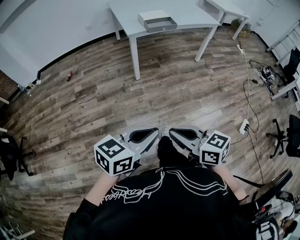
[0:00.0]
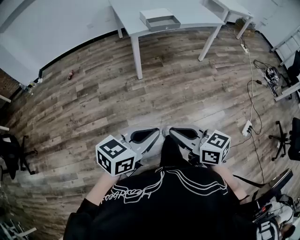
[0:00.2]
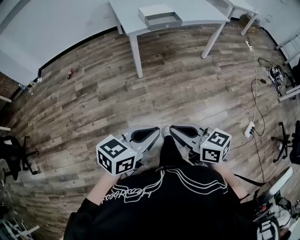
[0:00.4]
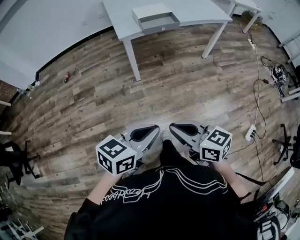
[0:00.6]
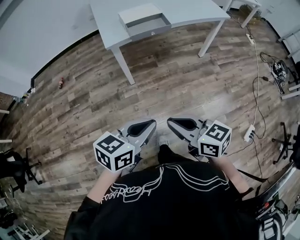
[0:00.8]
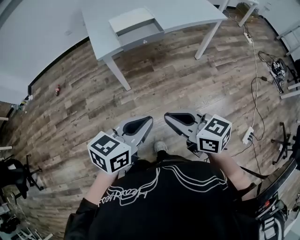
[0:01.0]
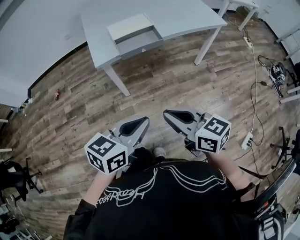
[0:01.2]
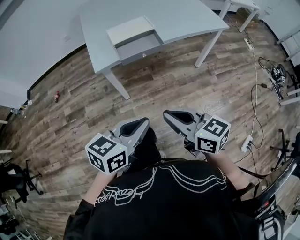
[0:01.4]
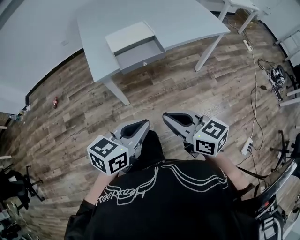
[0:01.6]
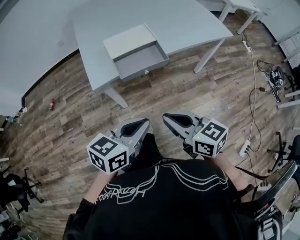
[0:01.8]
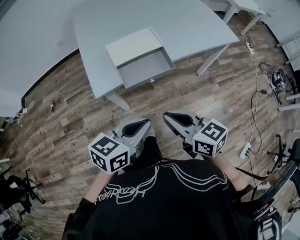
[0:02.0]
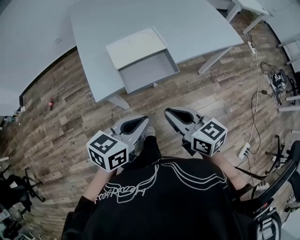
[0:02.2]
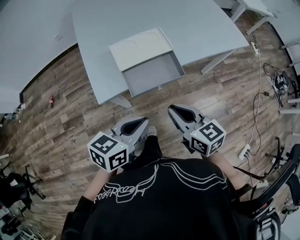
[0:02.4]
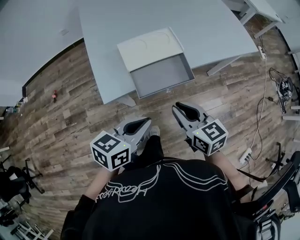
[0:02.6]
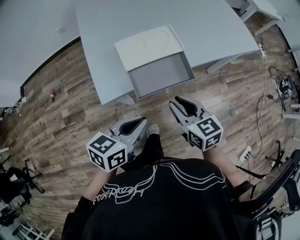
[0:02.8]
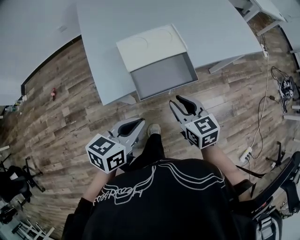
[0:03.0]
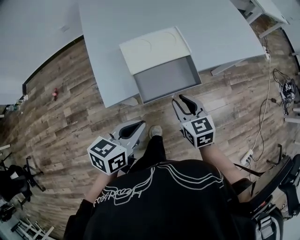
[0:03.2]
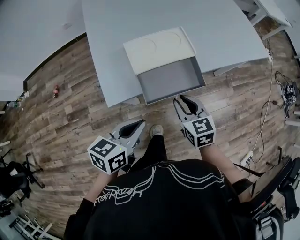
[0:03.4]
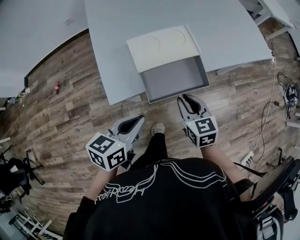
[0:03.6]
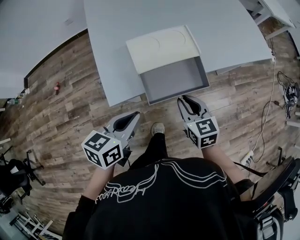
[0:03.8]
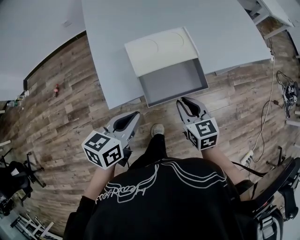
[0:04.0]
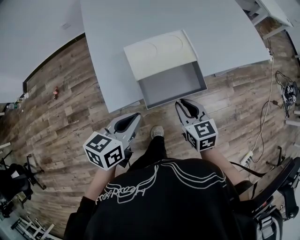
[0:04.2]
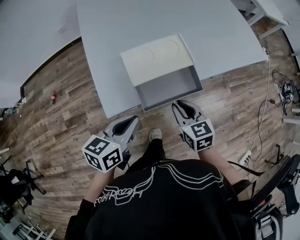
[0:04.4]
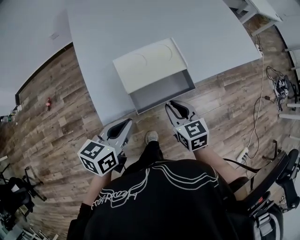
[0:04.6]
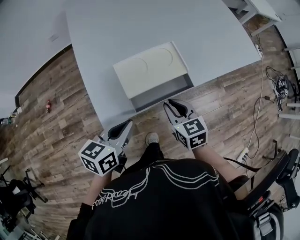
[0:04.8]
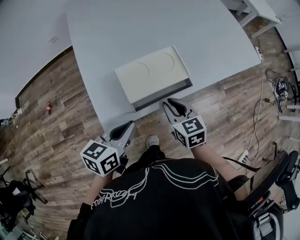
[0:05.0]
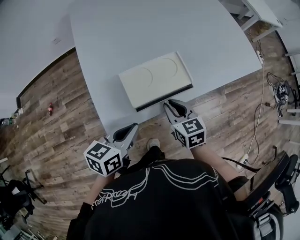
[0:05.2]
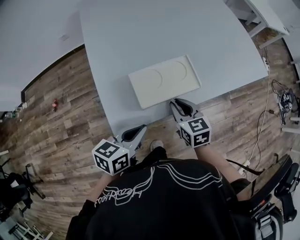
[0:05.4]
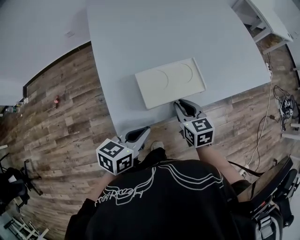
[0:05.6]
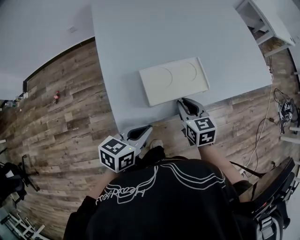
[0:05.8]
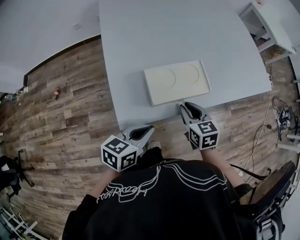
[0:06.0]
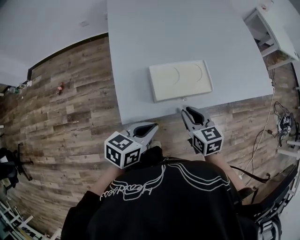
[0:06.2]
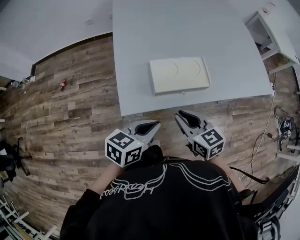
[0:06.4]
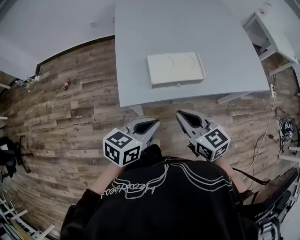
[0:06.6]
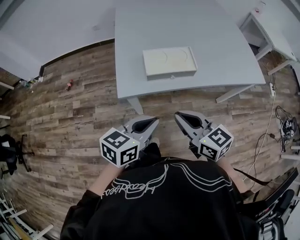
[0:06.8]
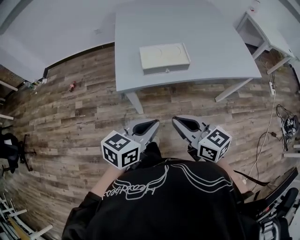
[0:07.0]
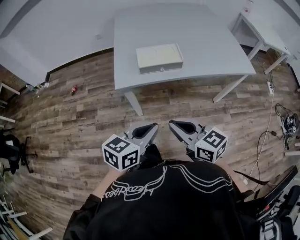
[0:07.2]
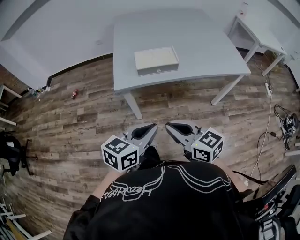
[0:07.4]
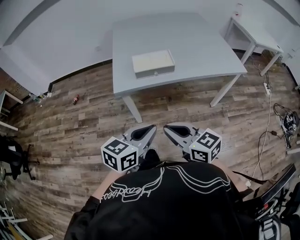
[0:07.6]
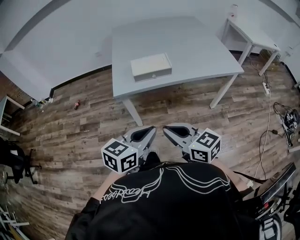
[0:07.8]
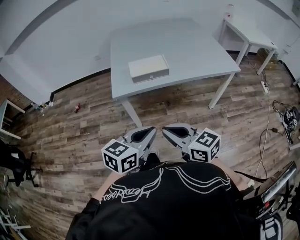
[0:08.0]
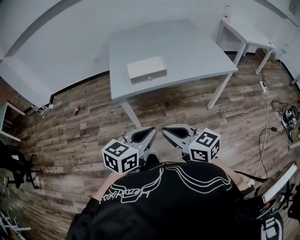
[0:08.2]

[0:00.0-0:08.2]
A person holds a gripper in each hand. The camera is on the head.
0:00.0 to 0:01.6: The pair of grippers is taken forward, approximately 50 cm.
0:01.6 to 0:03.2: The left gripper goes approximately 25 cm forward, to the left and downward. Meanwhile the right gripper is displaced forward and downward by roughly 30 cm, changes its angle by approximately 30 degrees, and opens its fingers.
0:03.2 to 0:05.0: Both grippers move forward, about 10 cm.
0:05.0 to 0:06.6: The left gripper travels backward and to the right by roughly 10 cm; the right gripper goes roughly 15 cm upward and backward, and rotates some 30 degrees.
0:06.6 to 0:08.2: The right gripper travels backward by about 30 cm. The left gripper travels backward, to the right and upward by roughly 30 cm.

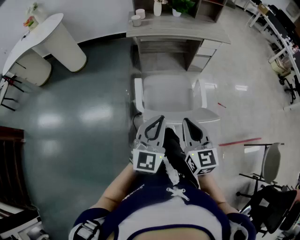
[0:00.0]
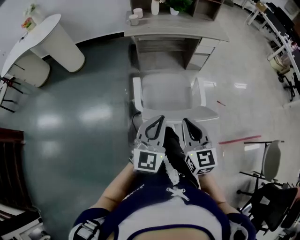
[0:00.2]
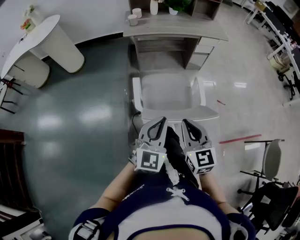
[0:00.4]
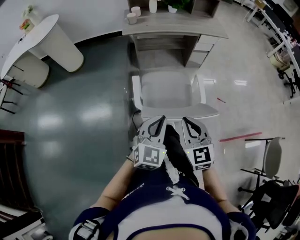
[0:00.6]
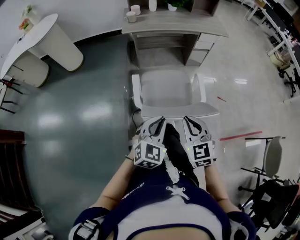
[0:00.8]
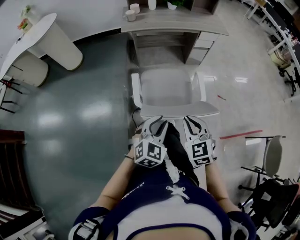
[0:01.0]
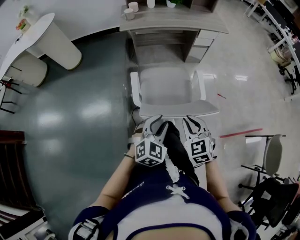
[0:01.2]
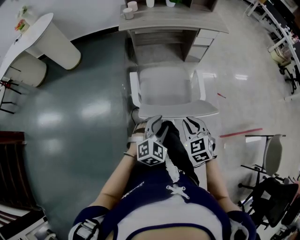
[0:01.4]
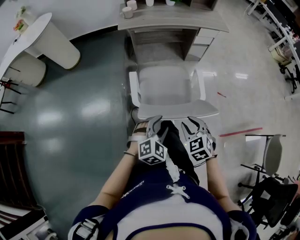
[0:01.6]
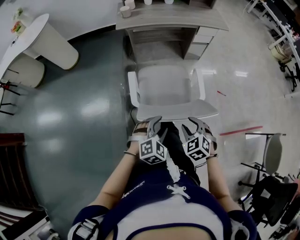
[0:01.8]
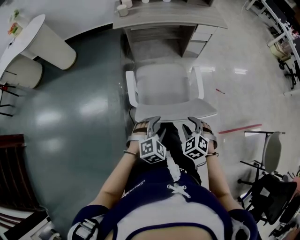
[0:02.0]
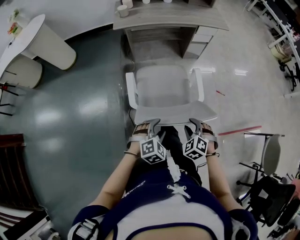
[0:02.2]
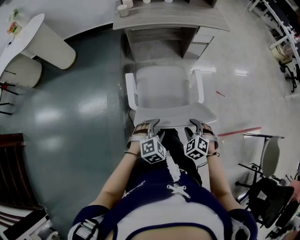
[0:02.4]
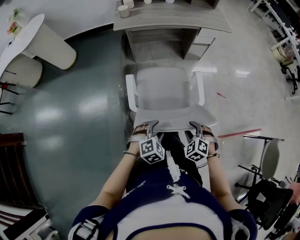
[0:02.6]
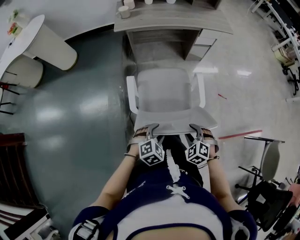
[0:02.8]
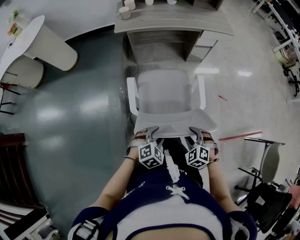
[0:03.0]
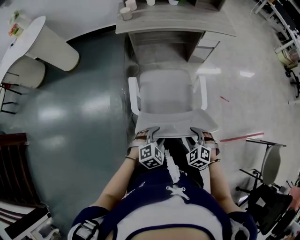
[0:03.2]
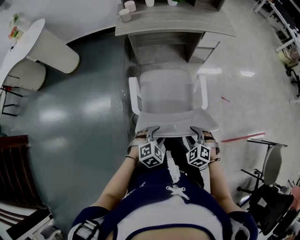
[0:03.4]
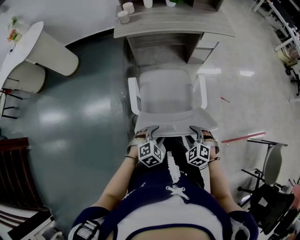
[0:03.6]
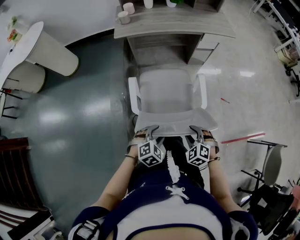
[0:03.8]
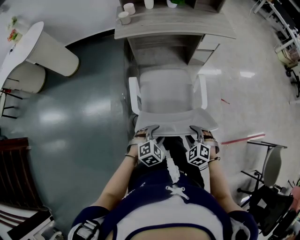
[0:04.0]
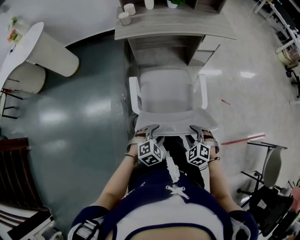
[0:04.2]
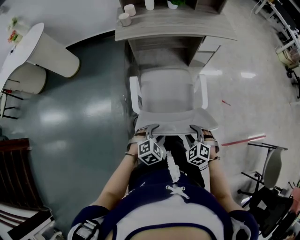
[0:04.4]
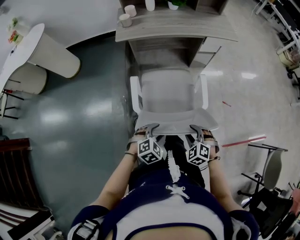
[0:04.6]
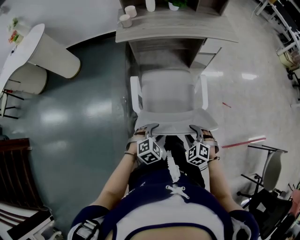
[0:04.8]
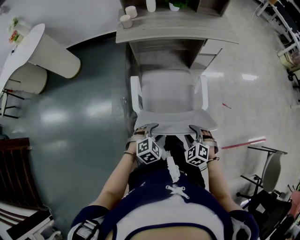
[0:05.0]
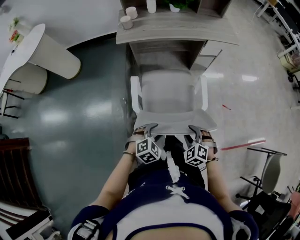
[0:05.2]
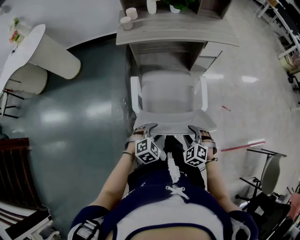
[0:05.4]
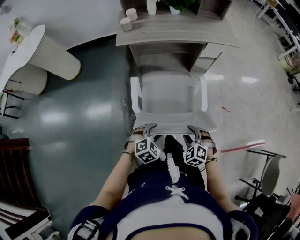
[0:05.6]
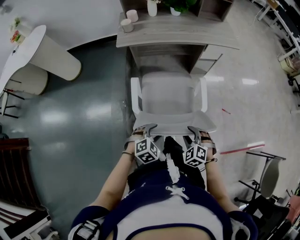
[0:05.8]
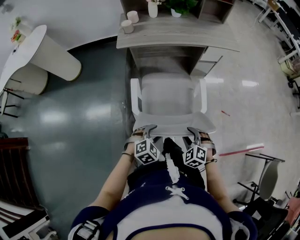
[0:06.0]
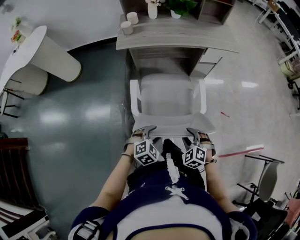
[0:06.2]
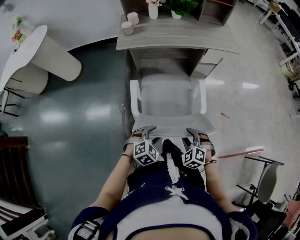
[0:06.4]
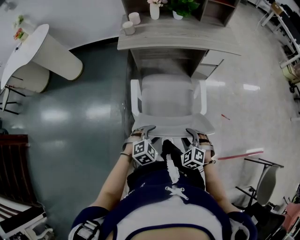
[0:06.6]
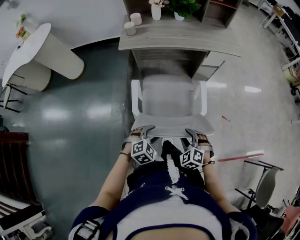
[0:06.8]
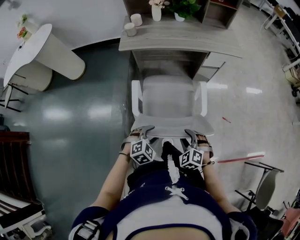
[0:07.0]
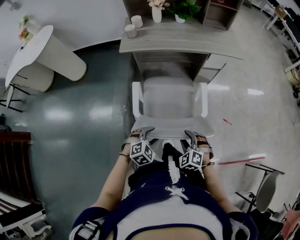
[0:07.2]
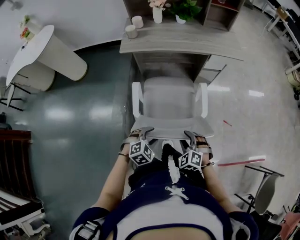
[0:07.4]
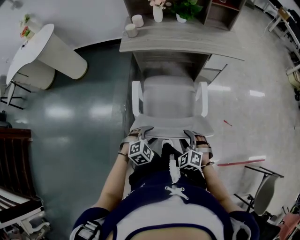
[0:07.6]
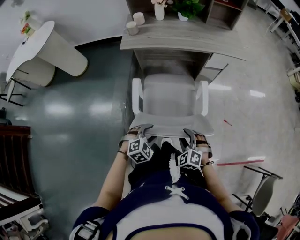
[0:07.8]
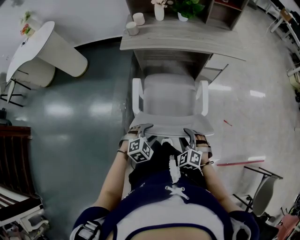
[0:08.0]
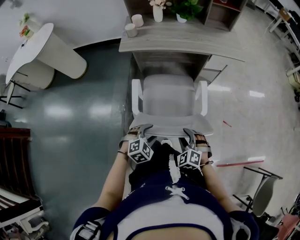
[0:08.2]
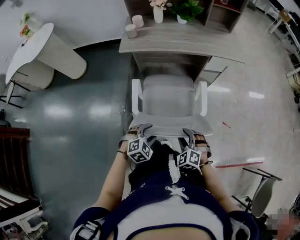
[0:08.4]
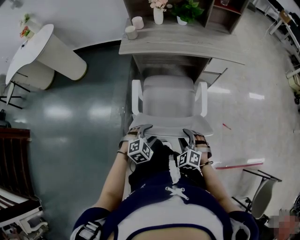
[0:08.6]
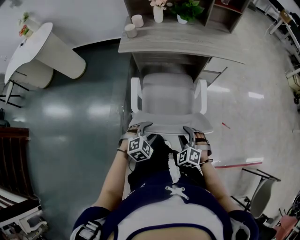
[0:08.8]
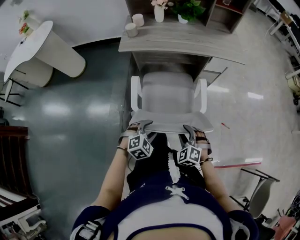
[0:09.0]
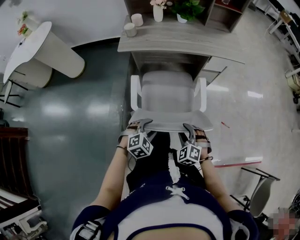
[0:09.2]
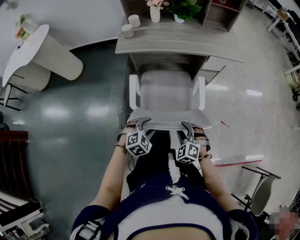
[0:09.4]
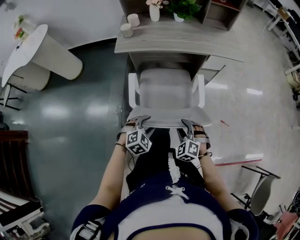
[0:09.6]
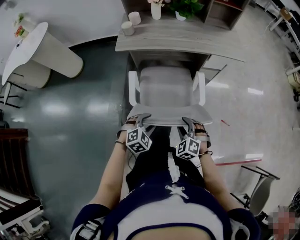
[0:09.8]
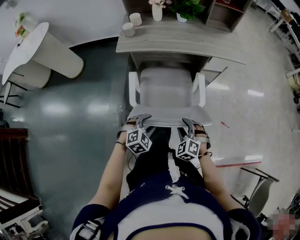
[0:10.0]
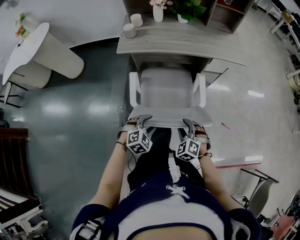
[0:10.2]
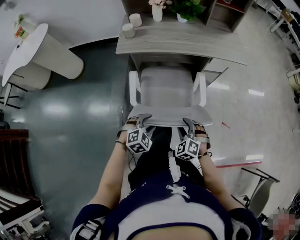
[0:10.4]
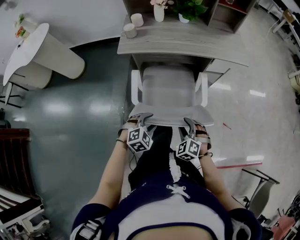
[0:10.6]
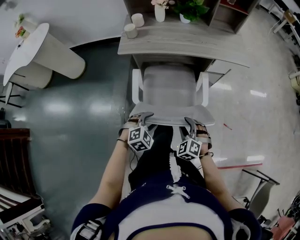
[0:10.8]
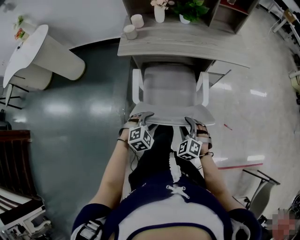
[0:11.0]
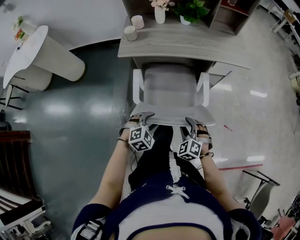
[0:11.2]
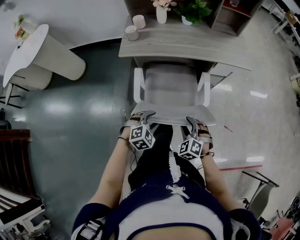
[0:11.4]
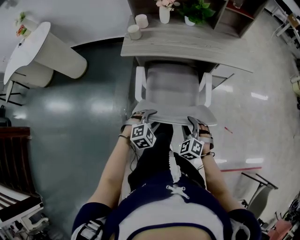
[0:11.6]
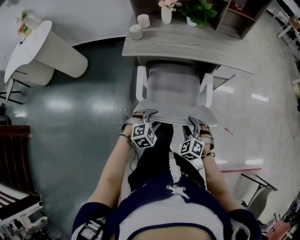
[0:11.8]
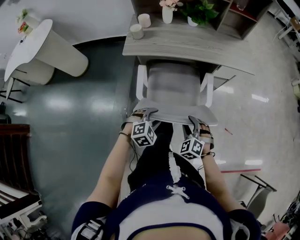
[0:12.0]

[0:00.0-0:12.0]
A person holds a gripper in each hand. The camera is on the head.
0:00.0 to 0:01.6: The two grippers go about 15 cm downward. The right gripper points its fingers approximately 30 degrees further downward; the left gripper angles its fingers downward, by about 40 degrees, and opens.
0:01.6 to 0:03.0: Both grippers travel together downward, roughly 10 cm. The right gripper changes its angle by about 20 degrees.
0:03.0 to 0:04.4: Both grippers travel together forward, some 5 cm.
0:04.4 to 0:06.0: Both grippers travel together forward, some 5 cm.
0:06.0 to 0:07.6: The grippers make only small movements.
0:07.6 to 0:09.0: Both grippers travel together forward, some 5 cm.
0:09.0 to 0:10.4: The grippers both shift forward by approximately 5 cm.
0:10.4 to 0:12.0: The two grippers go some 5 cm forward.

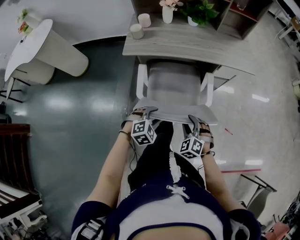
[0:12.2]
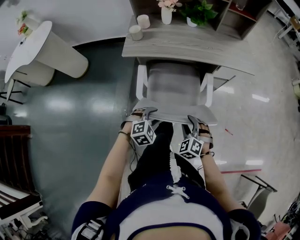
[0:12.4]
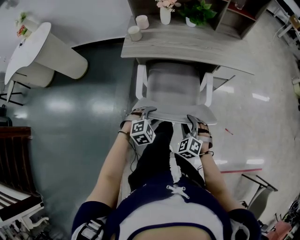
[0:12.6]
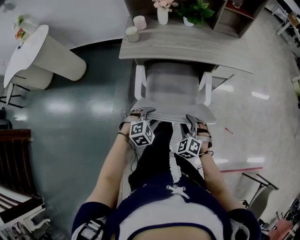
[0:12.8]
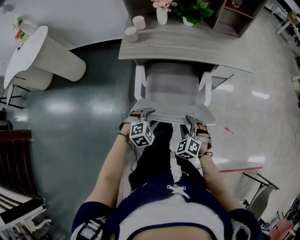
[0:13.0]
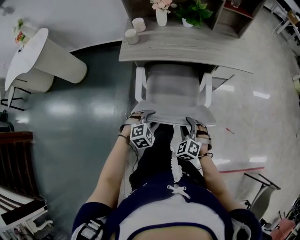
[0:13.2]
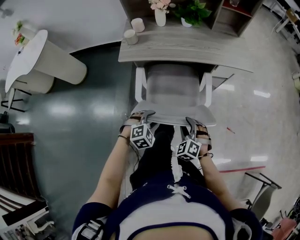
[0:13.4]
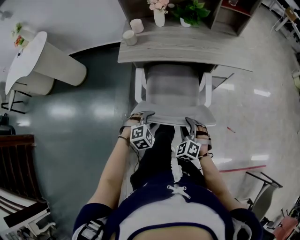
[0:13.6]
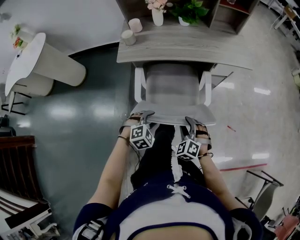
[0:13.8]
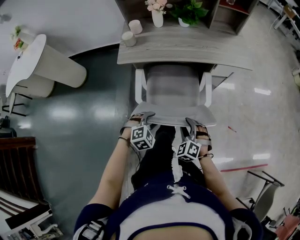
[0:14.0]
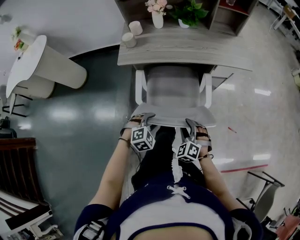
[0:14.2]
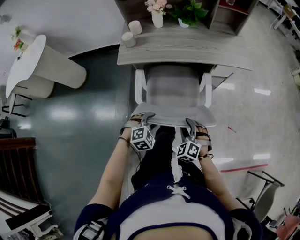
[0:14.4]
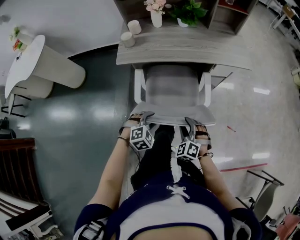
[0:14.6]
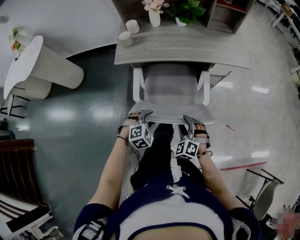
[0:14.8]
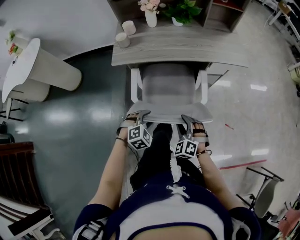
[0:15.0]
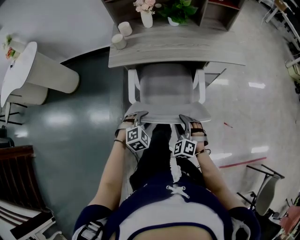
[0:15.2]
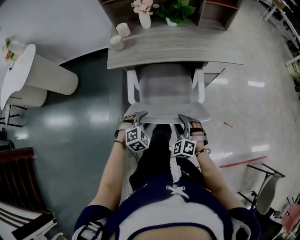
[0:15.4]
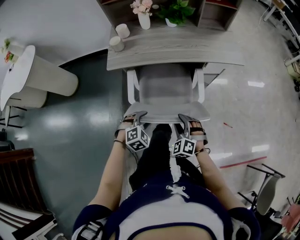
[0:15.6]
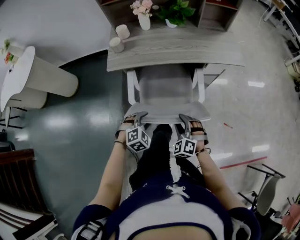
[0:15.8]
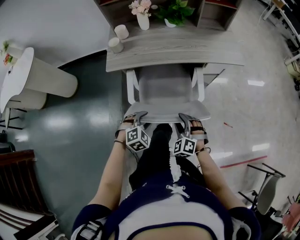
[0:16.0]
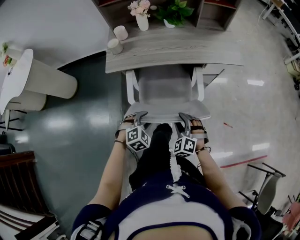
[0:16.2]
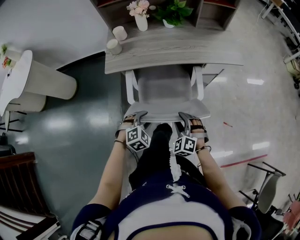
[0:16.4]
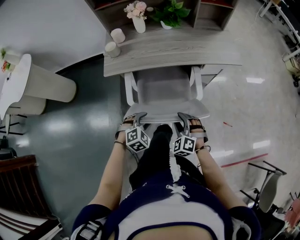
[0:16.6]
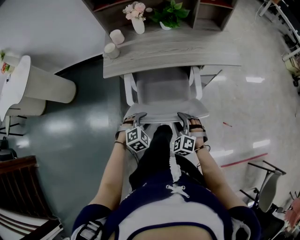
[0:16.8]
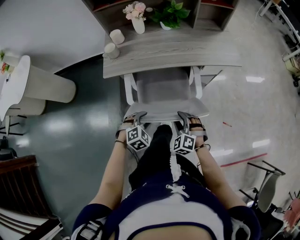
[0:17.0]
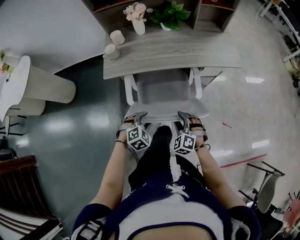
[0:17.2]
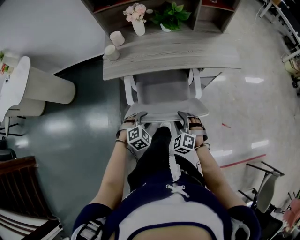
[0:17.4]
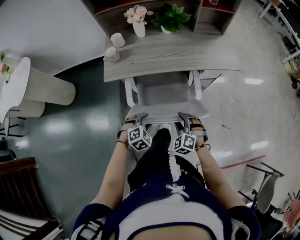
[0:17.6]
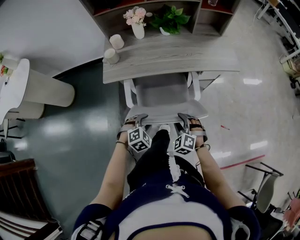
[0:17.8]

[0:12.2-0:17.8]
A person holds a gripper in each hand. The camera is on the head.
0:12.2 to 0:15.0: The grippers make only small movements.
0:15.0 to 0:16.4: The grippers move only a little.
0:16.4 to 0:17.8: The grippers stay close to where they were, moving slightly.
